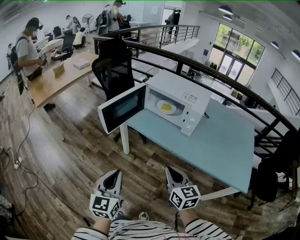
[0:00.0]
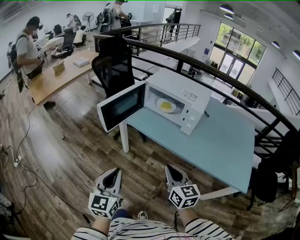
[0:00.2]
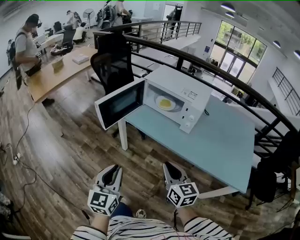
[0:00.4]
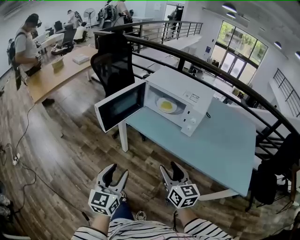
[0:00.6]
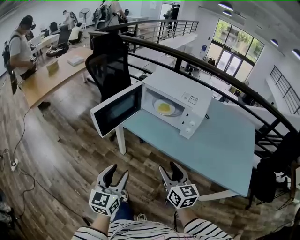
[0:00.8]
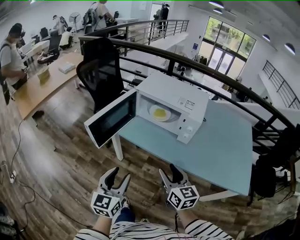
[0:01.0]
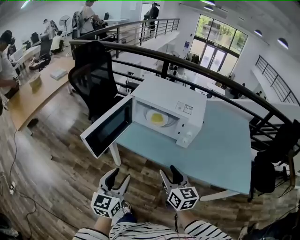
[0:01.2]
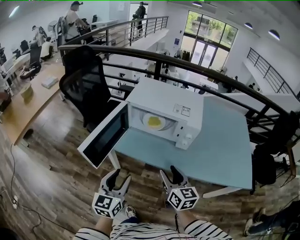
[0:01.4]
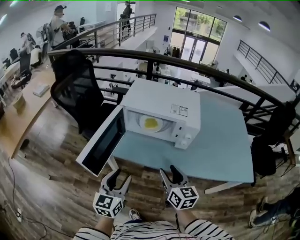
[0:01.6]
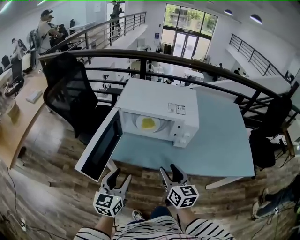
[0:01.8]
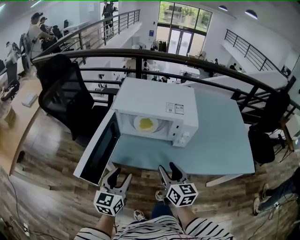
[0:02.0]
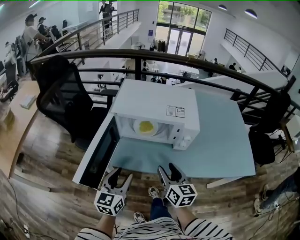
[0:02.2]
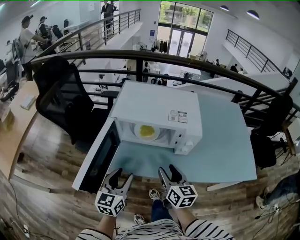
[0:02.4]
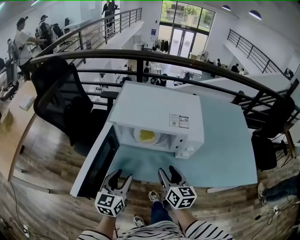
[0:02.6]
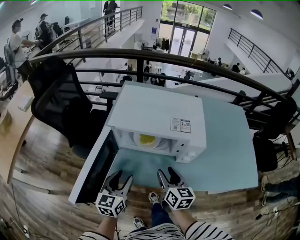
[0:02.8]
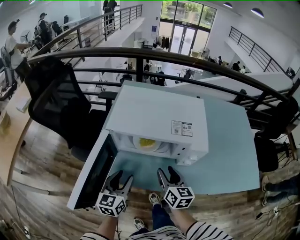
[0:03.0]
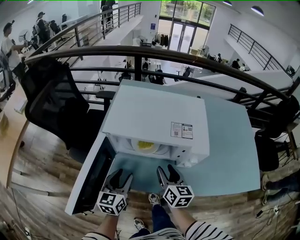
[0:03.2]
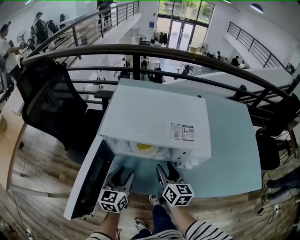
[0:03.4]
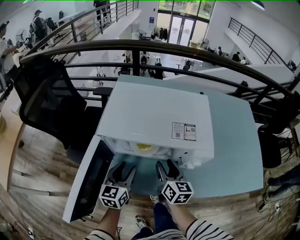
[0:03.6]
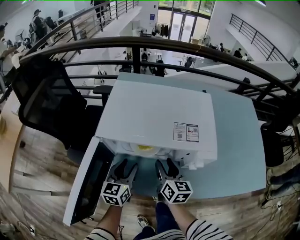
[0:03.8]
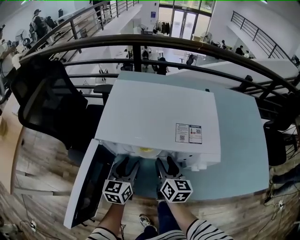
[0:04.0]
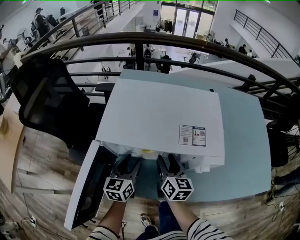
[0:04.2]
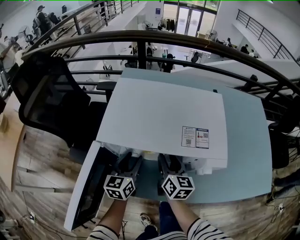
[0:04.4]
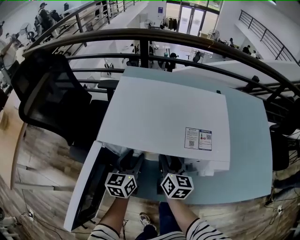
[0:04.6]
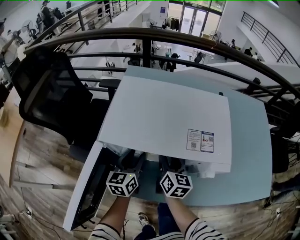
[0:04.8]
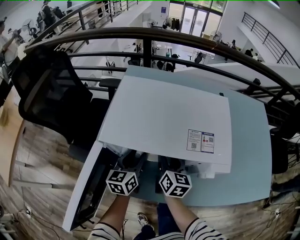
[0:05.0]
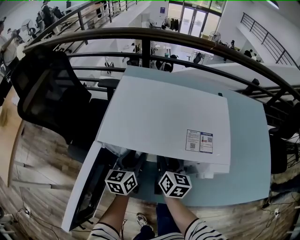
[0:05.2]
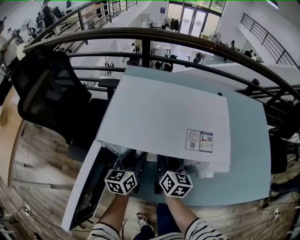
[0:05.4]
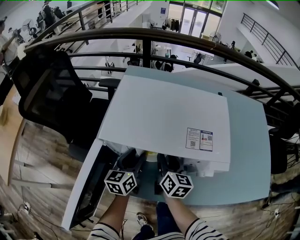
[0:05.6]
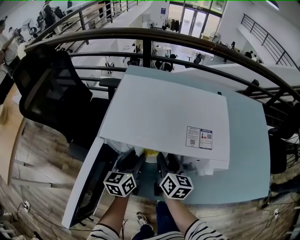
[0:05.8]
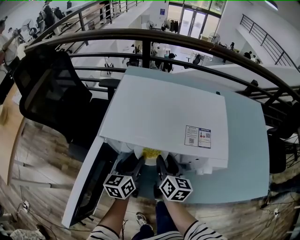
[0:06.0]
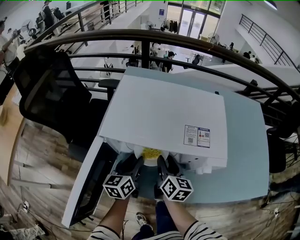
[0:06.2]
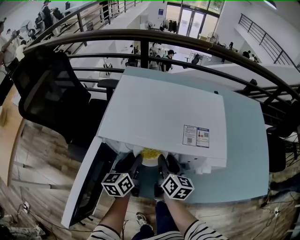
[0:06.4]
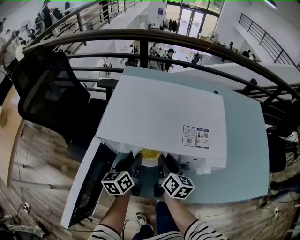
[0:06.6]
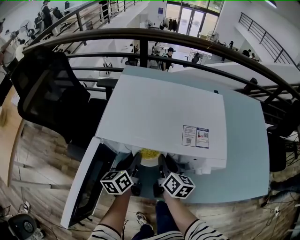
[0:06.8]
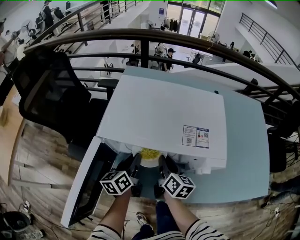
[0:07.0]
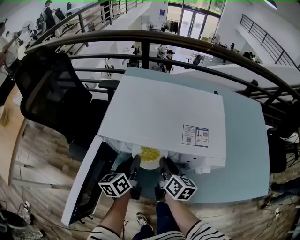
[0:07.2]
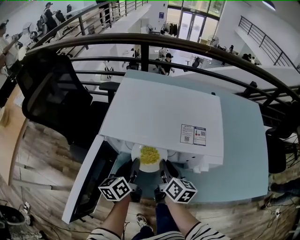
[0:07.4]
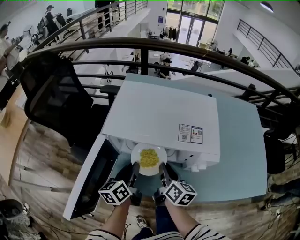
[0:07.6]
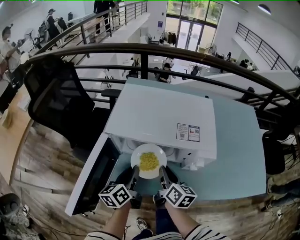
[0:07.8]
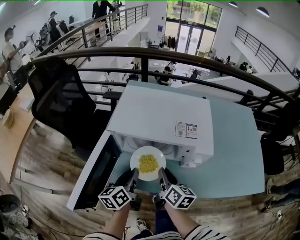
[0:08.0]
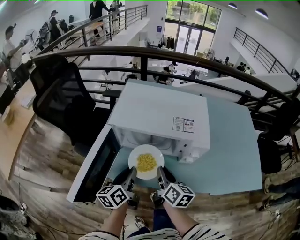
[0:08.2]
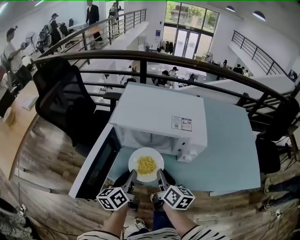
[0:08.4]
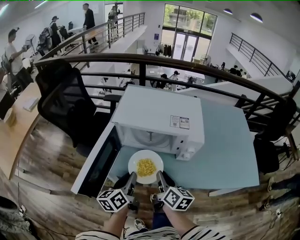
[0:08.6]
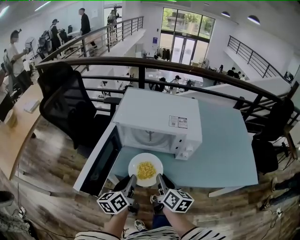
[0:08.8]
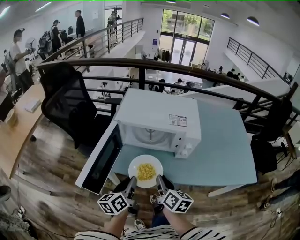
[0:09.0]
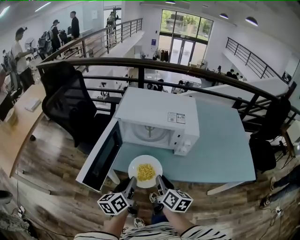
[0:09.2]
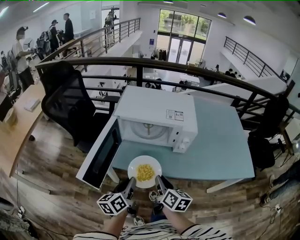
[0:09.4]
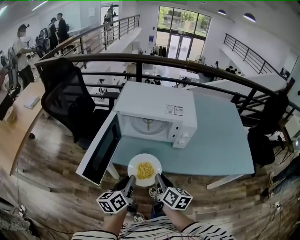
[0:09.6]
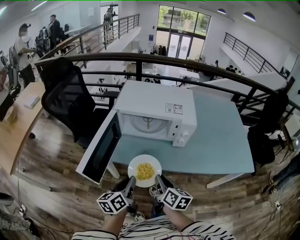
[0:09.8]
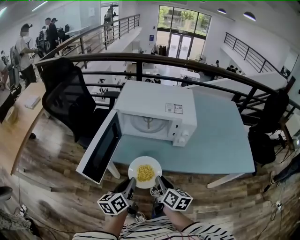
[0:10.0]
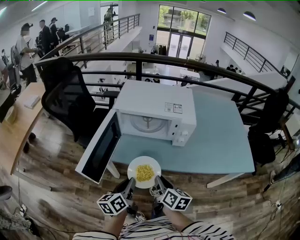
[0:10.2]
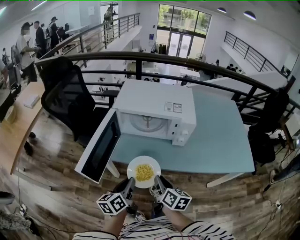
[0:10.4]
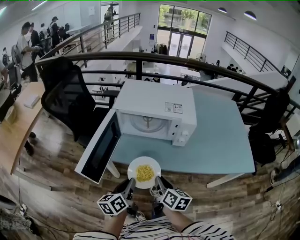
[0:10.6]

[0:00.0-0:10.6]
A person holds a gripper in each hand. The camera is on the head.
0:00.0 to 0:01.6: The grippers both shift forward by roughly 25 cm. The right gripper rotates roughly 20 degrees, and opens its fingers. The left gripper swivels some 20 degrees, and opens its fingers.
0:01.6 to 0:03.0: The right gripper goes some 15 cm forward and downward; the left gripper shifts about 20 cm forward.
0:03.0 to 0:04.6: Both grippers travel together forward, approximately 15 cm.
0:04.6 to 0:06.0: The grippers move only a little.
0:06.0 to 0:07.6: The left gripper moves approximately 5 cm, and closes up; the right gripper shifts by some 5 cm, and closes its fingers.
0:07.6 to 0:09.0: Both grippers travel together backward, about 20 cm.
0:09.0 to 0:10.6: Both grippers travel together backward, about 5 cm.

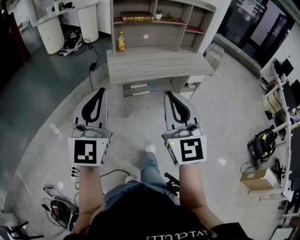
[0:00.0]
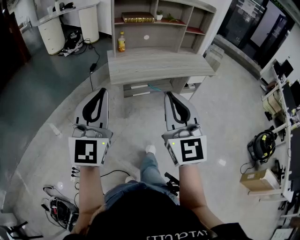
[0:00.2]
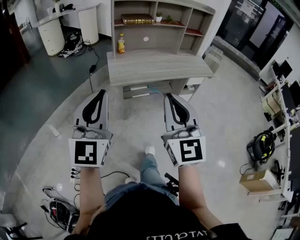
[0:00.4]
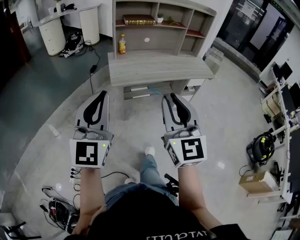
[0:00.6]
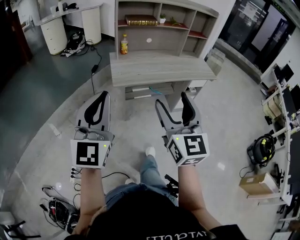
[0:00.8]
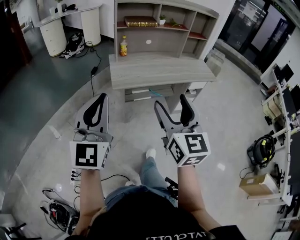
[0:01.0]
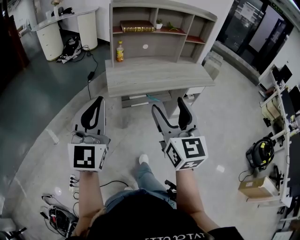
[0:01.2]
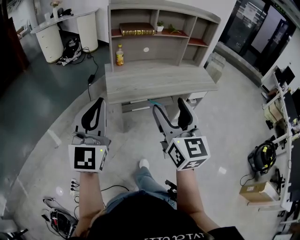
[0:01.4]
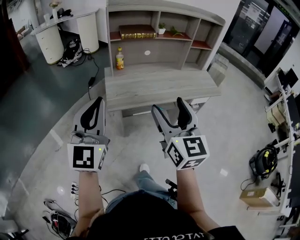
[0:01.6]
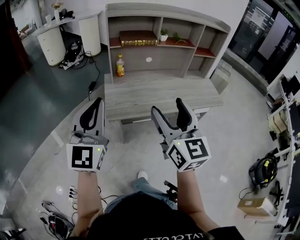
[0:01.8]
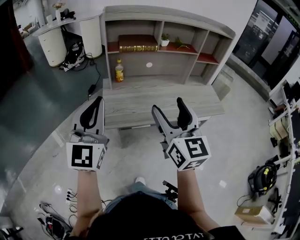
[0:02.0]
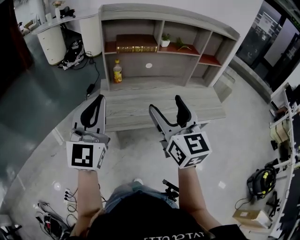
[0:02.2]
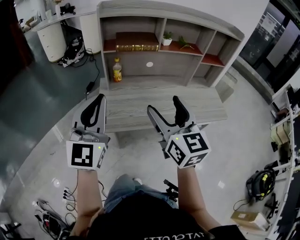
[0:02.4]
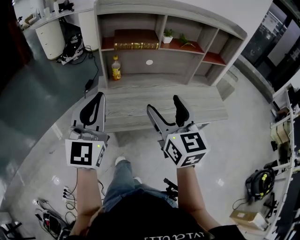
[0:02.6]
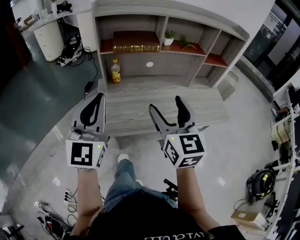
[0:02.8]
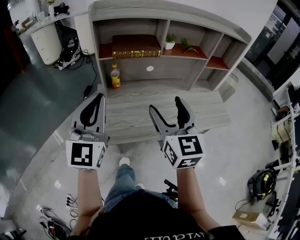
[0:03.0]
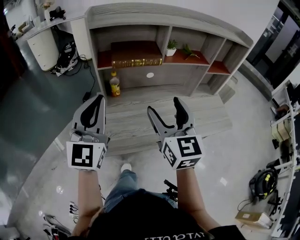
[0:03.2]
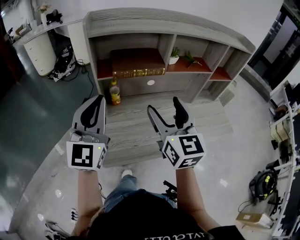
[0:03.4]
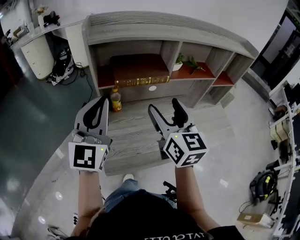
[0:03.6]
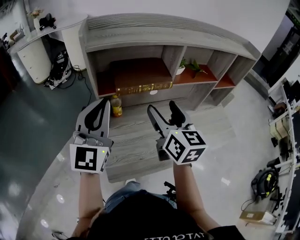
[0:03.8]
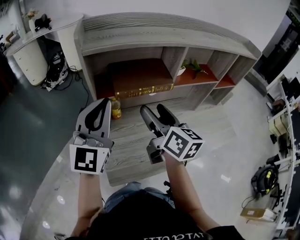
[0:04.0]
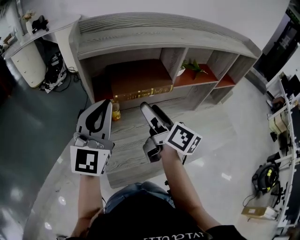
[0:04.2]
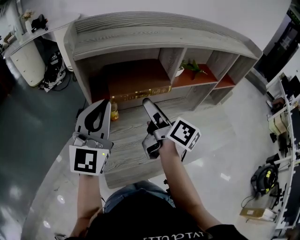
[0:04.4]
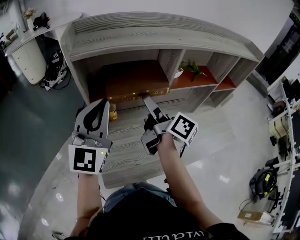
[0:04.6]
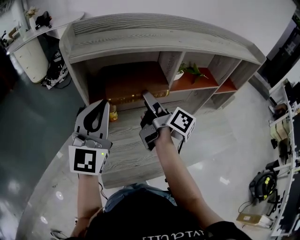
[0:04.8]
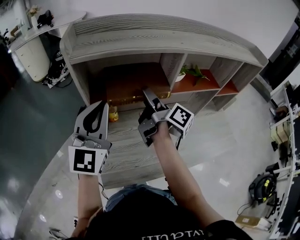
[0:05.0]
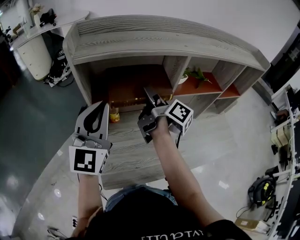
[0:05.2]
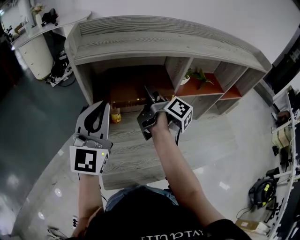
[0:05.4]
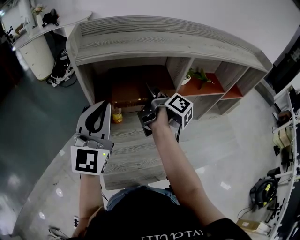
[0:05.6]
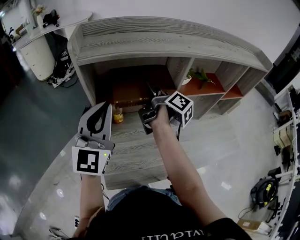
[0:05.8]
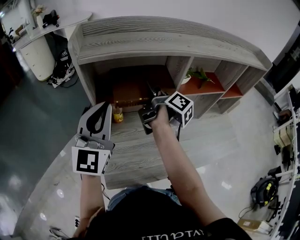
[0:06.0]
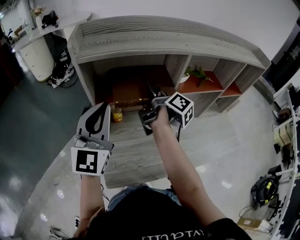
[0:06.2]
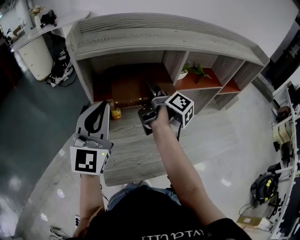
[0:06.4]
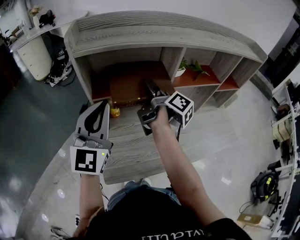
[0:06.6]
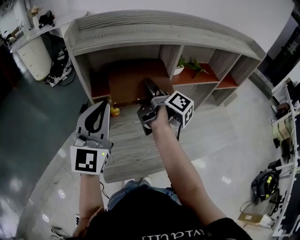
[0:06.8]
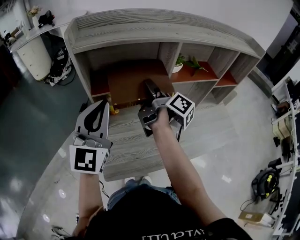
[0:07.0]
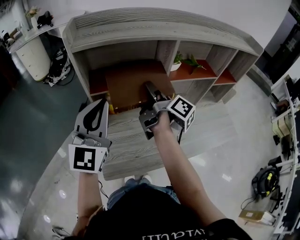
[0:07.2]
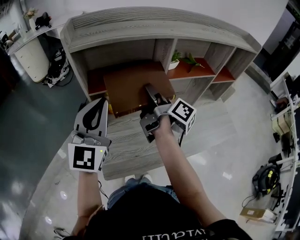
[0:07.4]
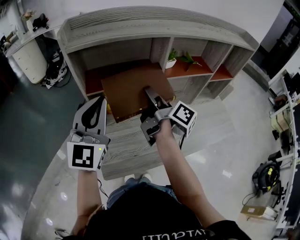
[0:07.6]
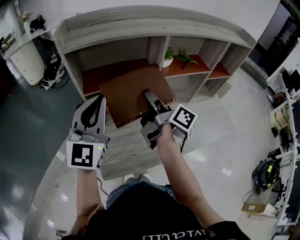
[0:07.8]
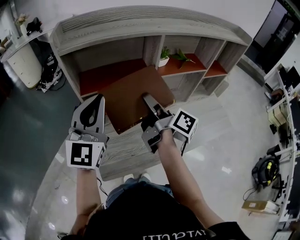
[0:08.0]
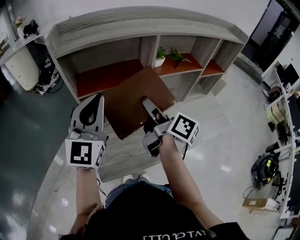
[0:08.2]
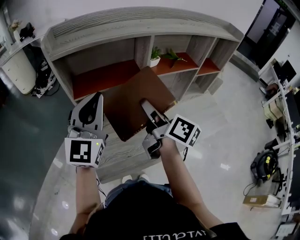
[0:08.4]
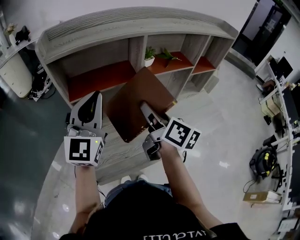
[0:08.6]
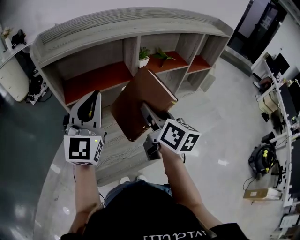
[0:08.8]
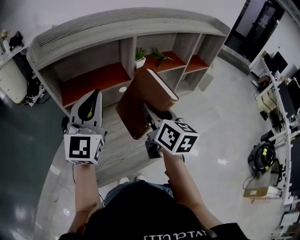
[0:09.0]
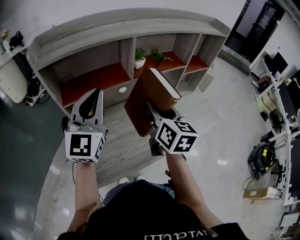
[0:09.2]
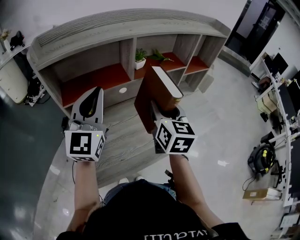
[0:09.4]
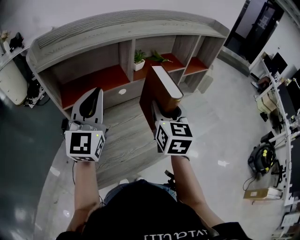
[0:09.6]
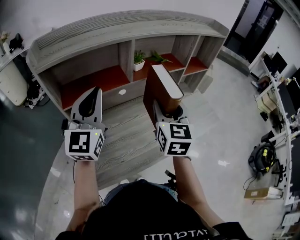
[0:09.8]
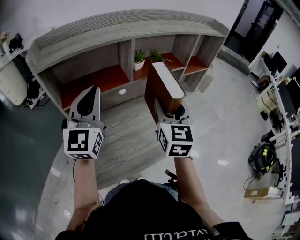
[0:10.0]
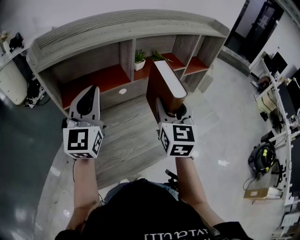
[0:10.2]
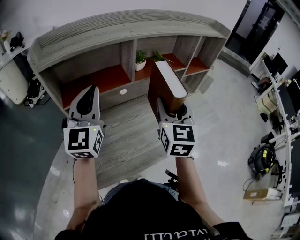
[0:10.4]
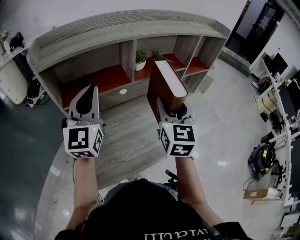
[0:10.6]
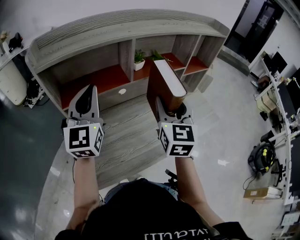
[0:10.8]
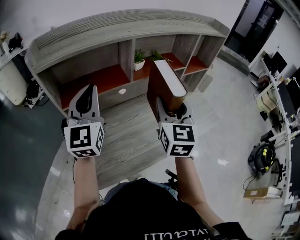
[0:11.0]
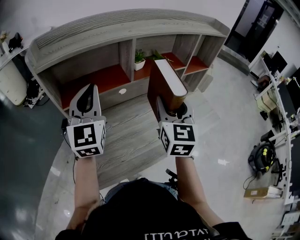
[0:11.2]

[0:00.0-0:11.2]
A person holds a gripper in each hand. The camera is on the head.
0:00.0 to 0:01.6: The grippers both shift forward by roughly 20 cm. The right gripper opens.
0:01.6 to 0:03.2: Both grippers travel together forward, roughly 35 cm.
0:03.2 to 0:04.8: The grippers both shift forward by about 20 cm. The right gripper rotates around the line of its fingers by roughly 80 degrees, clockwise from behind.
0:06.4 to 0:08.0: The right gripper goes about 10 cm backward.
0:08.0 to 0:09.6: The right gripper goes roughly 10 cm to the right, and rotates around the line of its fingers by roughly 70 degrees, counterclockwise from behind. Meanwhile the left gripper shifts about 5 cm to the right.
0:09.6 to 0:11.2: There are only small adjustments of the grippers.

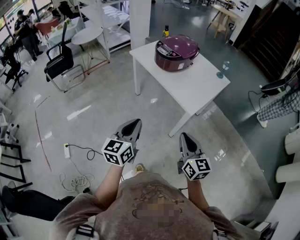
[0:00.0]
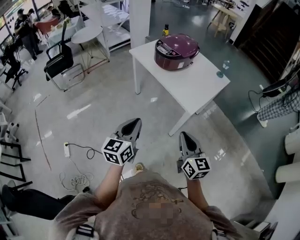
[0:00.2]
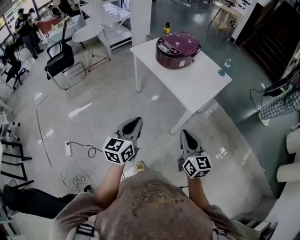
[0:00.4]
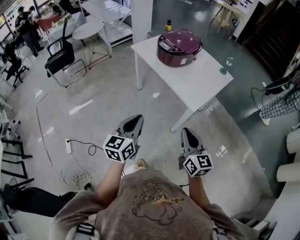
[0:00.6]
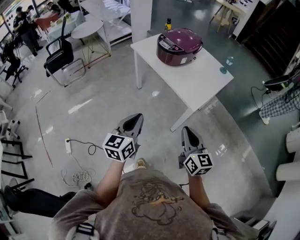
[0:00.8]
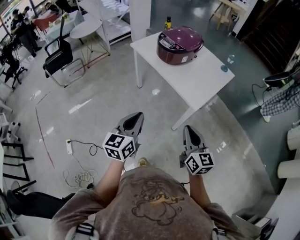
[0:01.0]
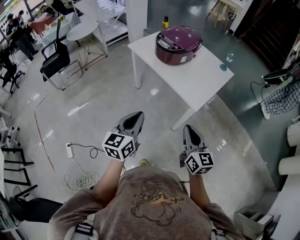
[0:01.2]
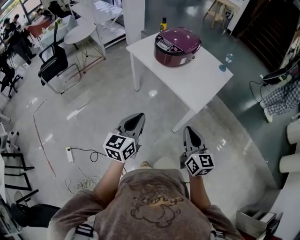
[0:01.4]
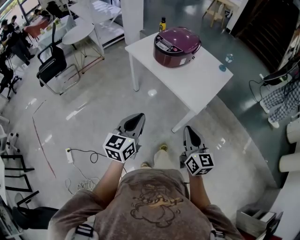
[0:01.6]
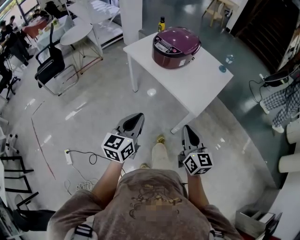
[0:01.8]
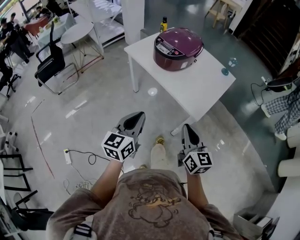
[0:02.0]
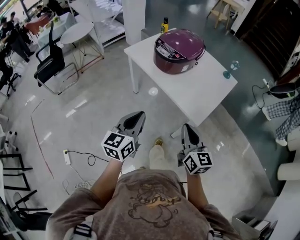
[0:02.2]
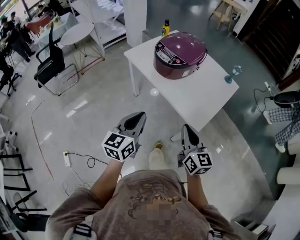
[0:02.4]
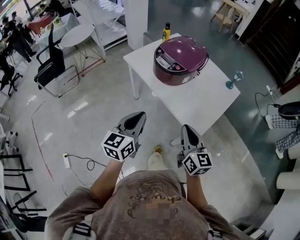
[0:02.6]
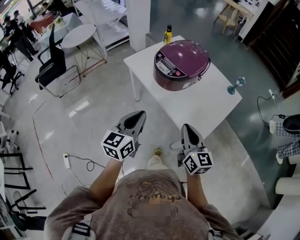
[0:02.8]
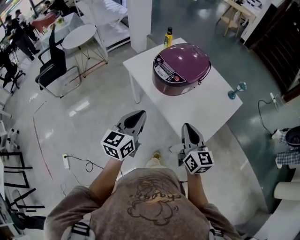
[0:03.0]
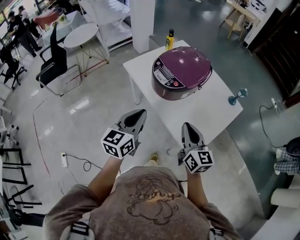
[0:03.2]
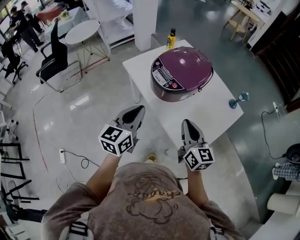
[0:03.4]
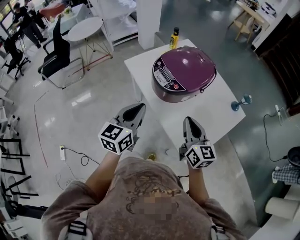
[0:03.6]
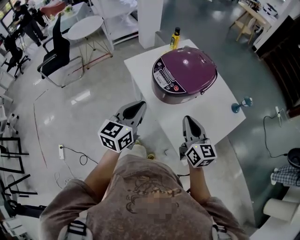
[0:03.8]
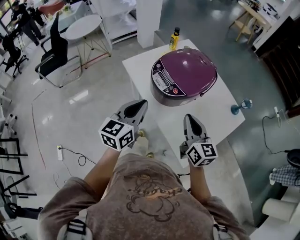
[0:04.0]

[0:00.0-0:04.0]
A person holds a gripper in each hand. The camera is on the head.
0:00.0 to 0:01.4: The right gripper shifts by about 5 cm; the left gripper travels forward by approximately 5 cm.
0:01.4 to 0:02.6: The grippers both shift forward by some 20 cm.
0:02.6 to 0:04.0: Both grippers move forward, about 20 cm.
